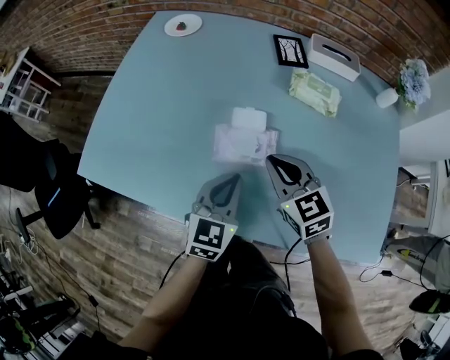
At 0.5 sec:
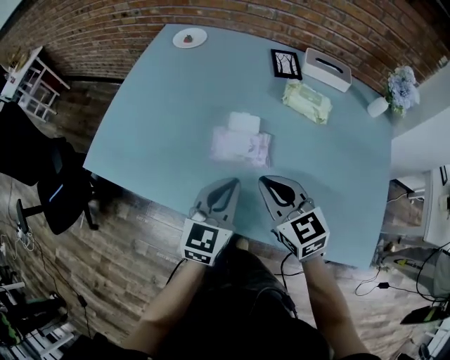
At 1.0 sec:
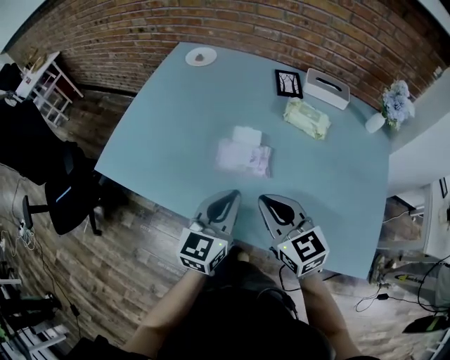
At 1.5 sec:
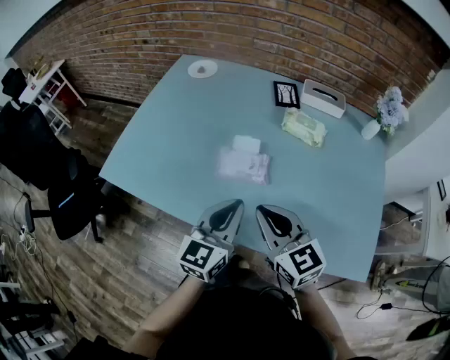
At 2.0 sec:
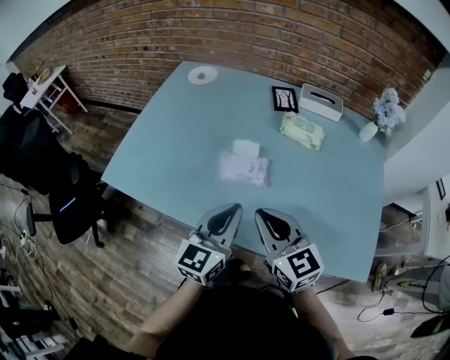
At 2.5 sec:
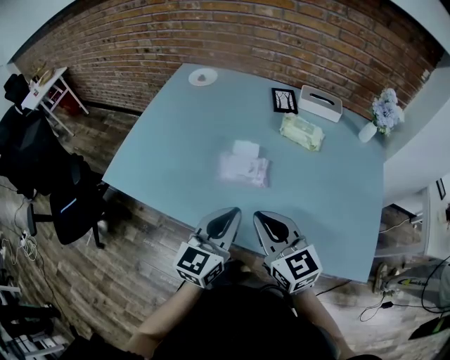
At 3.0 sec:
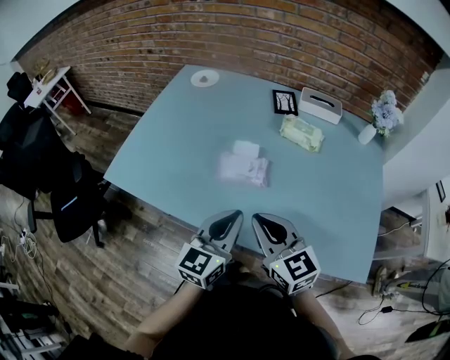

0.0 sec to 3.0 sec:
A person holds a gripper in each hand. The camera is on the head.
0.0 sec to 1.5 sec: The left gripper travels upward and backward by roughly 10 cm, while the right gripper heads backward and upward, covering some 15 cm.
1.5 sec to 3.0 sec: There are only small adjustments of the grippers.

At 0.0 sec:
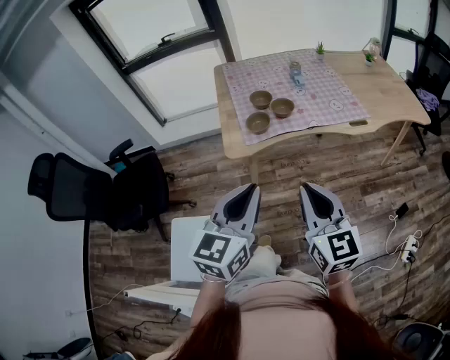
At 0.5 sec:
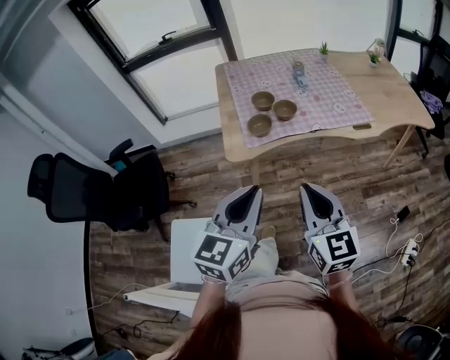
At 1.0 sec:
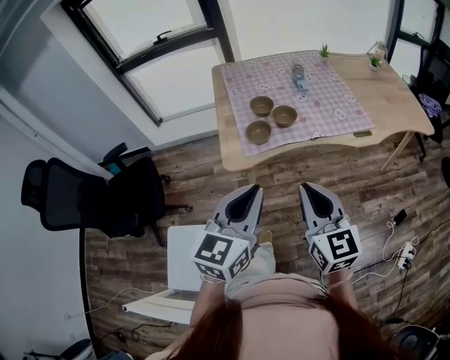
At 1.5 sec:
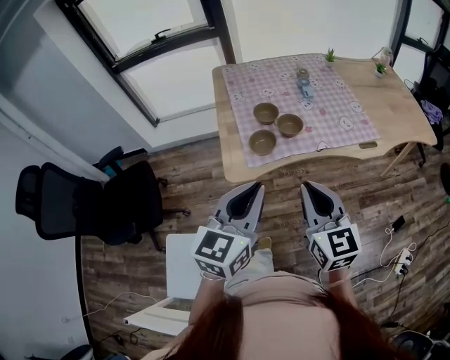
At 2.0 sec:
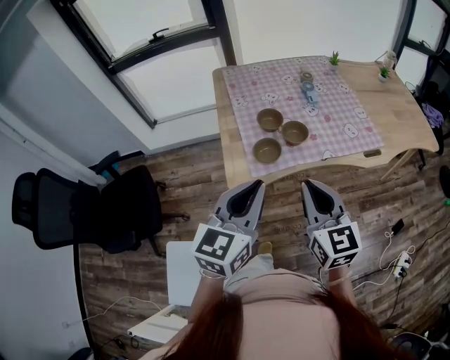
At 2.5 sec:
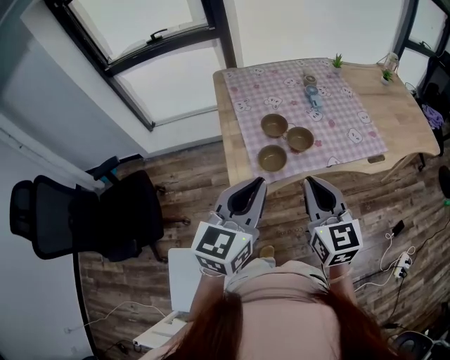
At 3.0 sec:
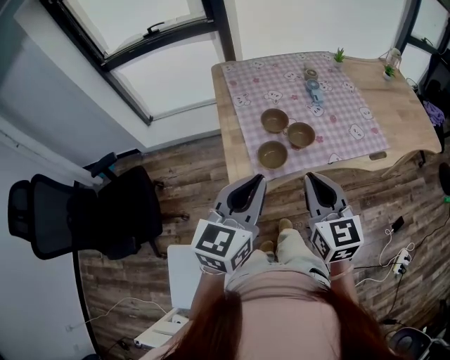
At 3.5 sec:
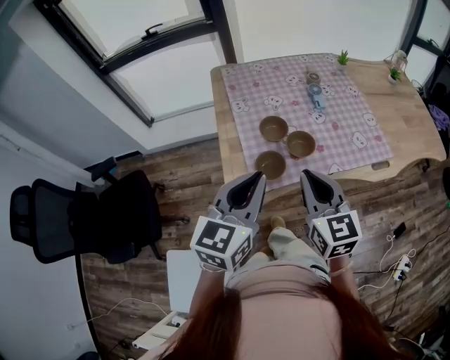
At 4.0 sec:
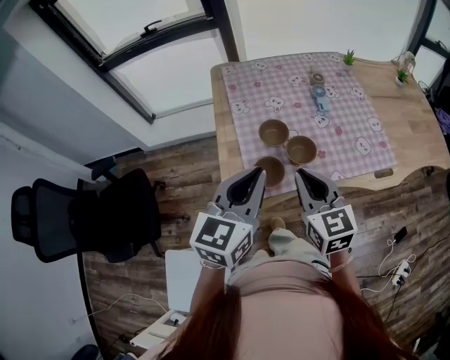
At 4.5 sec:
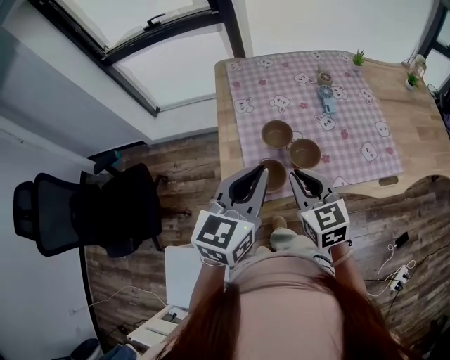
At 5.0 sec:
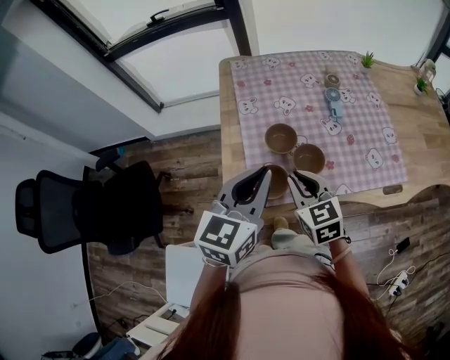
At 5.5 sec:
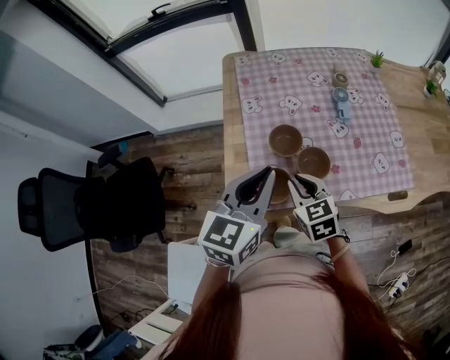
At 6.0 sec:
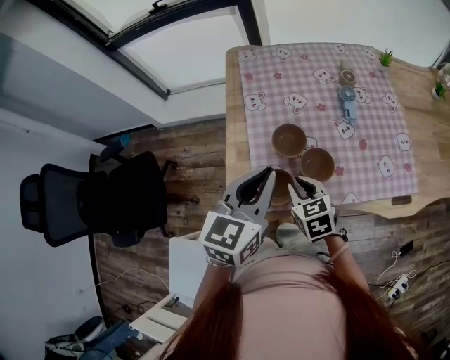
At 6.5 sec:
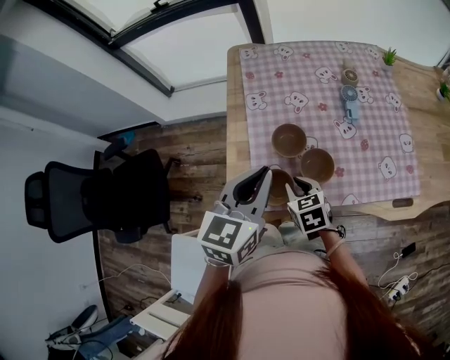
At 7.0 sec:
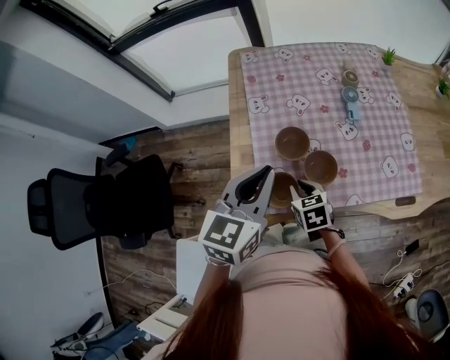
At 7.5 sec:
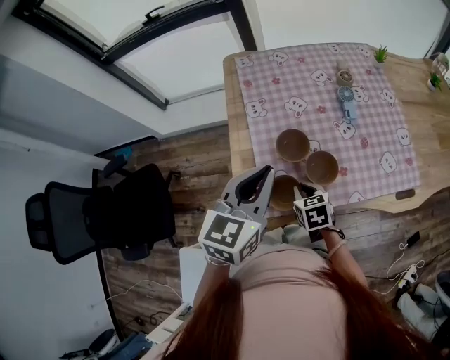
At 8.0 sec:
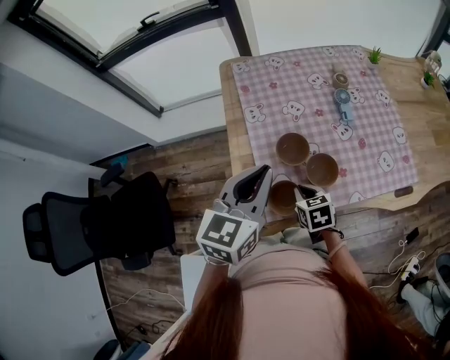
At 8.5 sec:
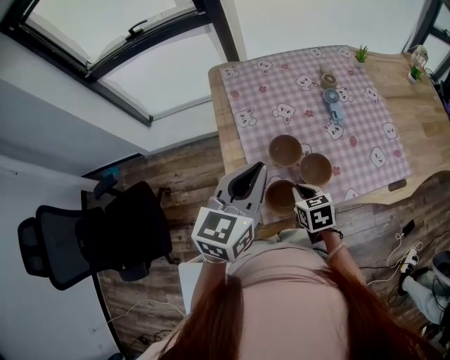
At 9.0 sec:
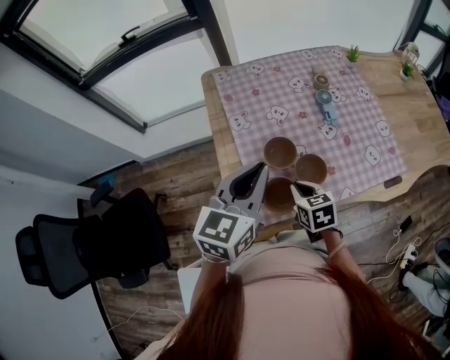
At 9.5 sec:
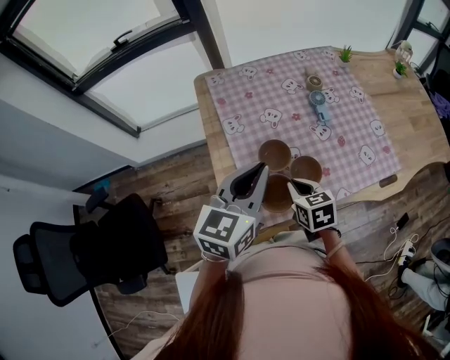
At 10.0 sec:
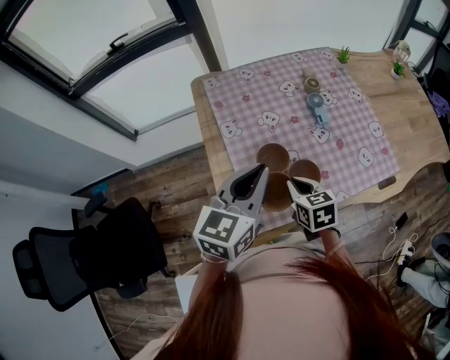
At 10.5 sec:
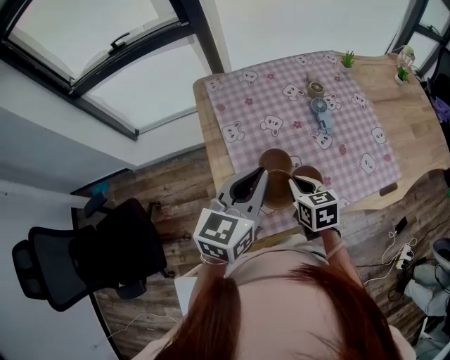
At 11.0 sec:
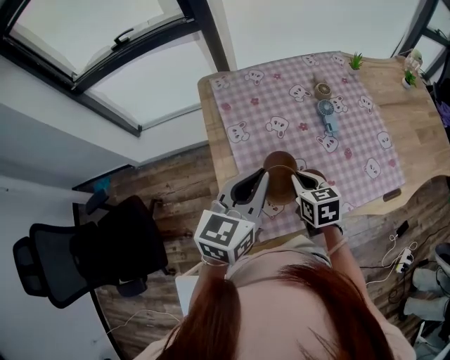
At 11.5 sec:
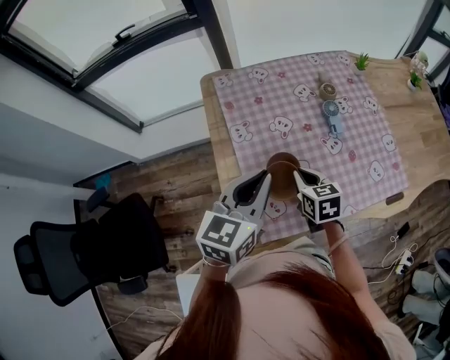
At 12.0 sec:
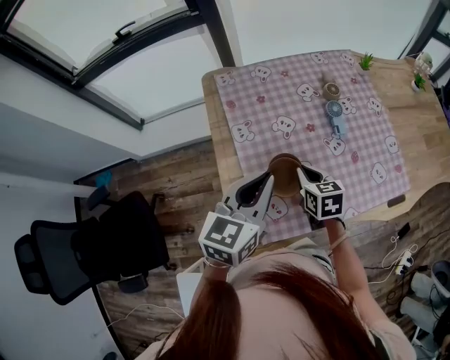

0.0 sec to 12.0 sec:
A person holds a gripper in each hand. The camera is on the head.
0.0 sec to 2.0 sec: The two grippers go roughly 20 cm forward.
2.0 sec to 4.0 sec: Both grippers travel together forward, about 15 cm.
4.0 sec to 6.0 sec: The left gripper moves forward and downward, approximately 10 cm; the right gripper goes roughly 20 cm downward and forward, and turns by roughly 30 degrees.
6.0 sec to 8.0 sec: The grippers stay close to where they were, moving slightly.
8.0 sec to 10.0 sec: The right gripper moves upward, approximately 5 cm.
10.0 sec to 12.0 sec: The left gripper moves roughly 5 cm. Meanwhile the right gripper moves forward, roughly 10 cm.

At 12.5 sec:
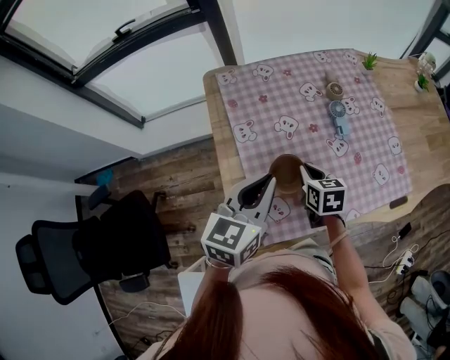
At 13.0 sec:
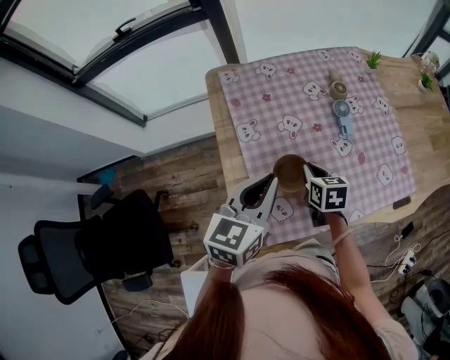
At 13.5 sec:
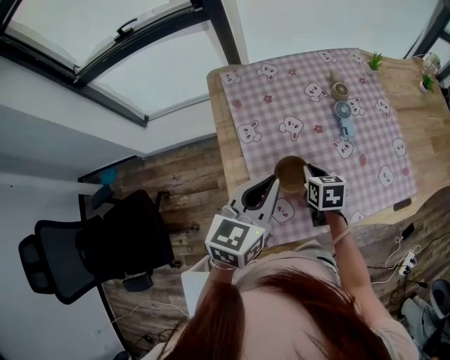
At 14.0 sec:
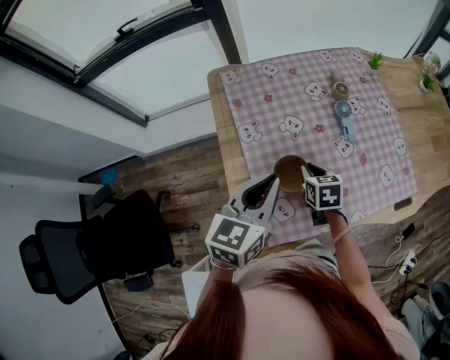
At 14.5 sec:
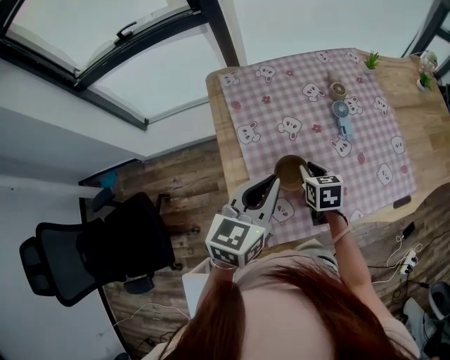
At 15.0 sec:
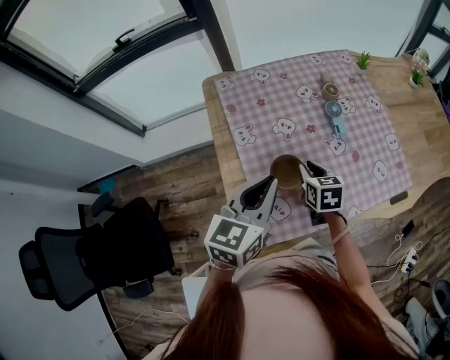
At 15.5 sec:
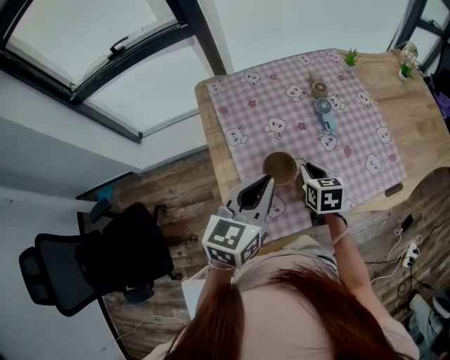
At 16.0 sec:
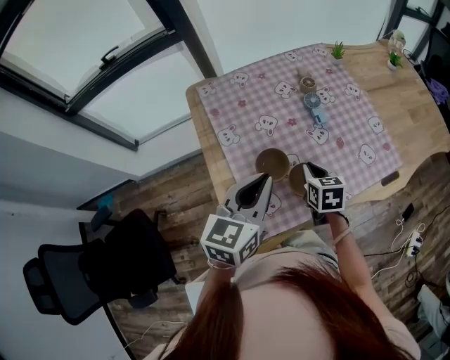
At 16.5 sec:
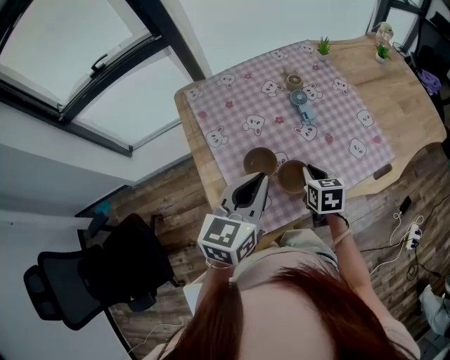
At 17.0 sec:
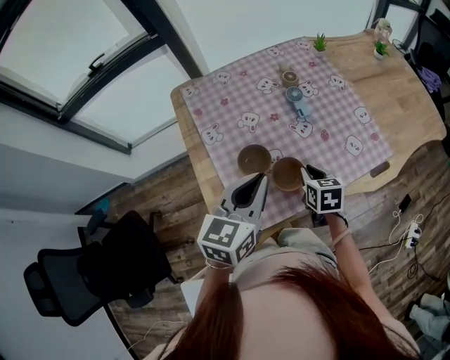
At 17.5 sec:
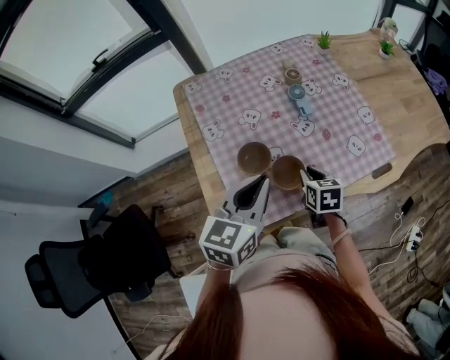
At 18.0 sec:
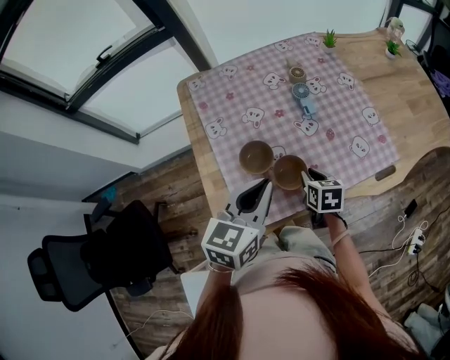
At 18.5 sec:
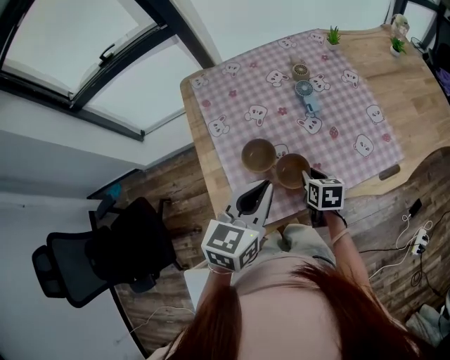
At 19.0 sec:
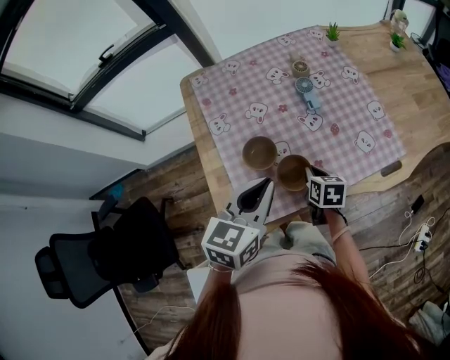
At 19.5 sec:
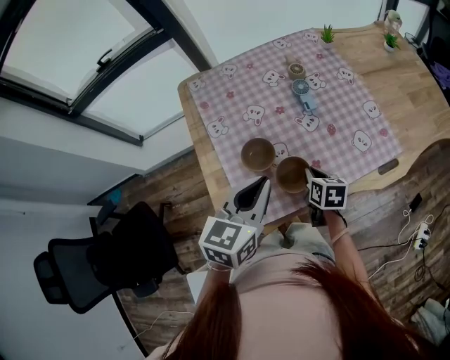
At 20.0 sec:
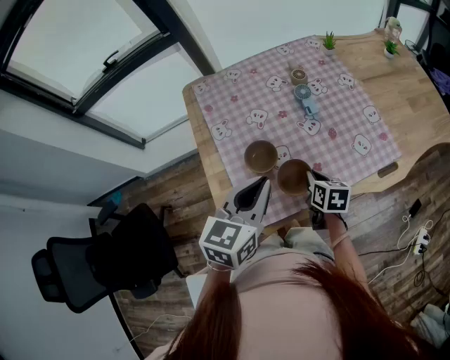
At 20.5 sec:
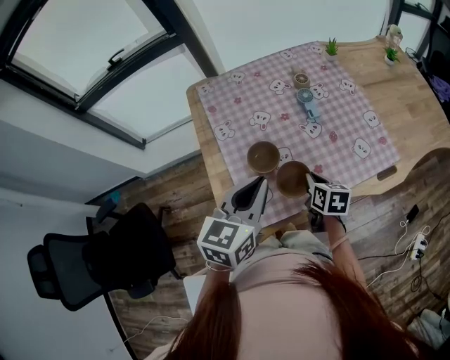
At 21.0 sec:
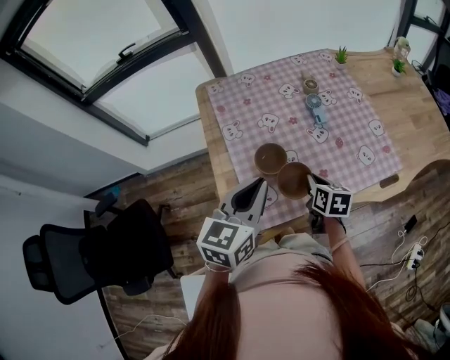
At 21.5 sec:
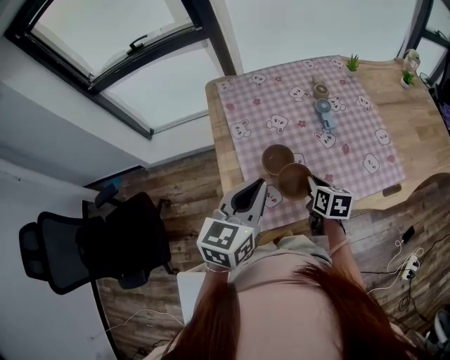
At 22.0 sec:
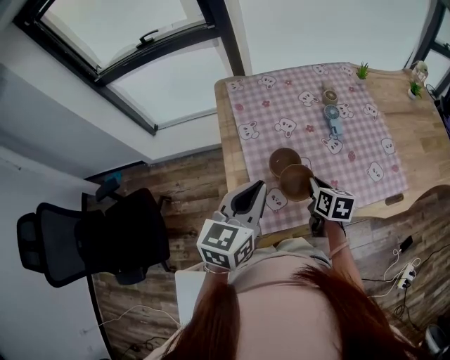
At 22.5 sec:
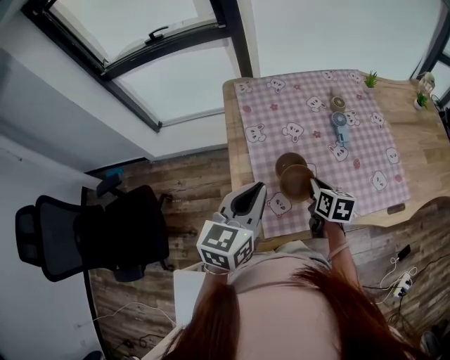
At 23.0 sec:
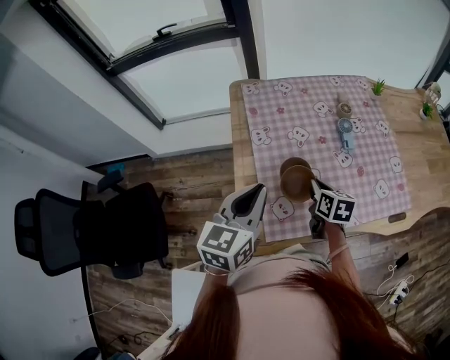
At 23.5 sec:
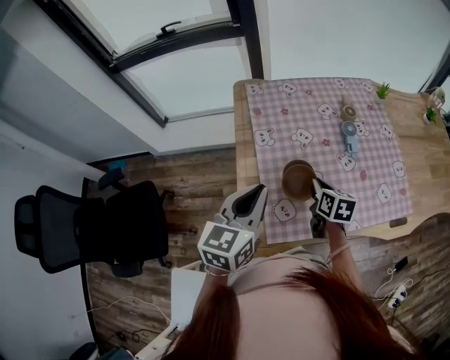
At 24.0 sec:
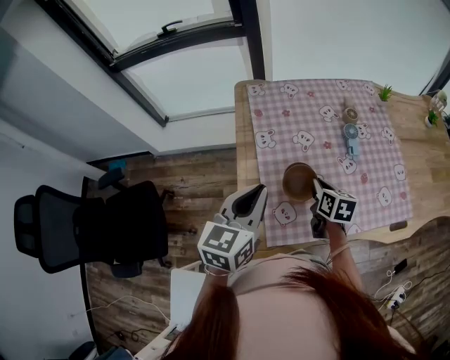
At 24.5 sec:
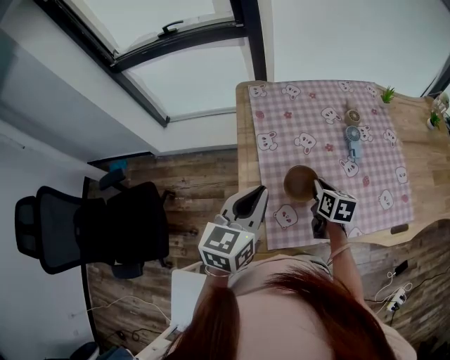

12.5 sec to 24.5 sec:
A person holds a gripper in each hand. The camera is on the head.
12.5 sec to 14.5 sec: The grippers make only small movements.
14.5 sec to 16.5 sec: The left gripper travels to the right by roughly 5 cm. The right gripper moves to the right and backward, approximately 15 cm.
16.5 sec to 18.5 sec: The left gripper changes place by approximately 5 cm; the right gripper goes approximately 5 cm downward.
18.5 sec to 20.5 sec: There are only small adjustments of the grippers.
20.5 sec to 22.5 sec: The two grippers go some 10 cm to the left.
22.5 sec to 24.5 sec: The right gripper goes approximately 5 cm forward.
